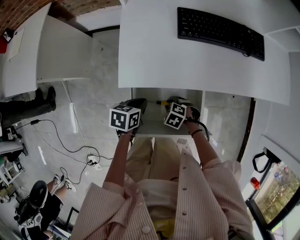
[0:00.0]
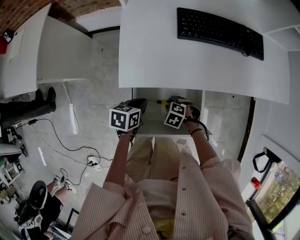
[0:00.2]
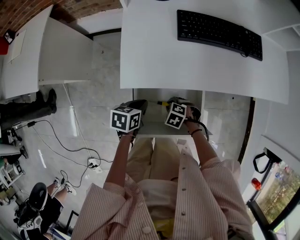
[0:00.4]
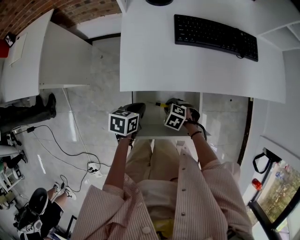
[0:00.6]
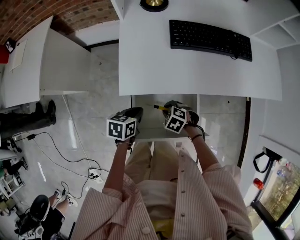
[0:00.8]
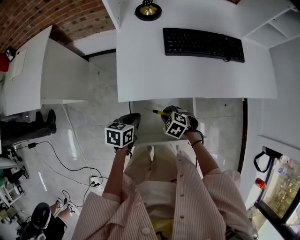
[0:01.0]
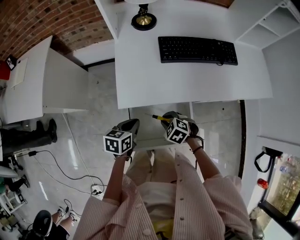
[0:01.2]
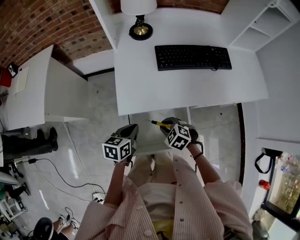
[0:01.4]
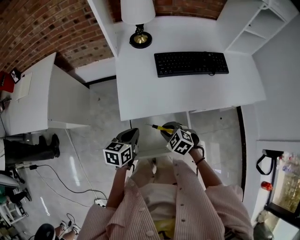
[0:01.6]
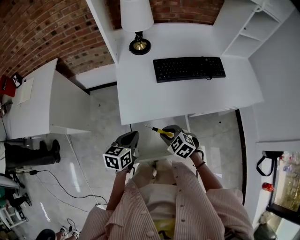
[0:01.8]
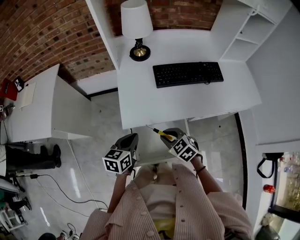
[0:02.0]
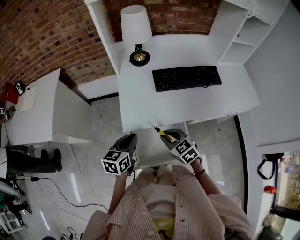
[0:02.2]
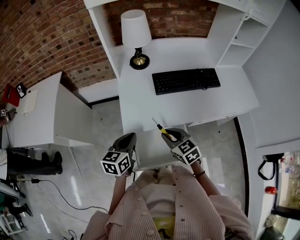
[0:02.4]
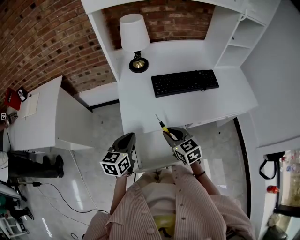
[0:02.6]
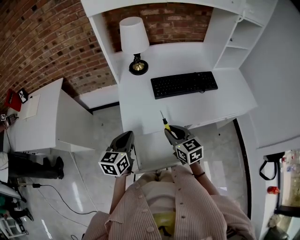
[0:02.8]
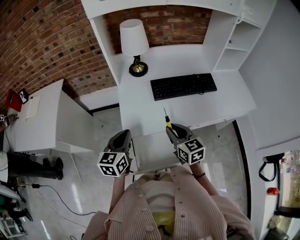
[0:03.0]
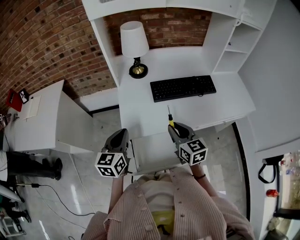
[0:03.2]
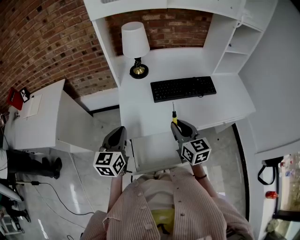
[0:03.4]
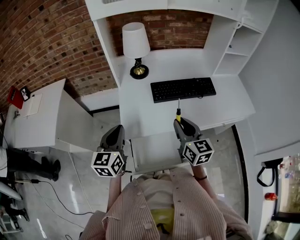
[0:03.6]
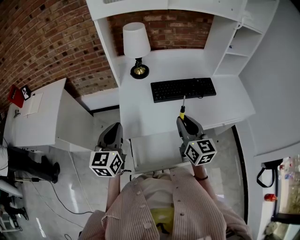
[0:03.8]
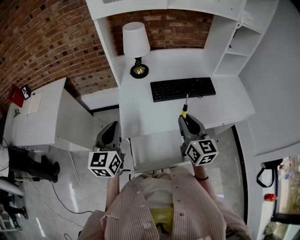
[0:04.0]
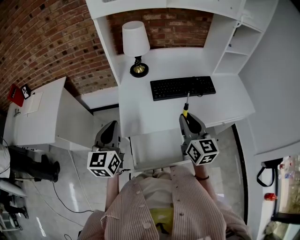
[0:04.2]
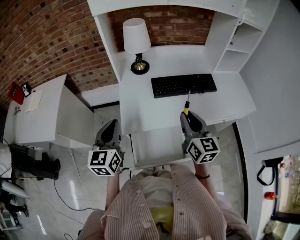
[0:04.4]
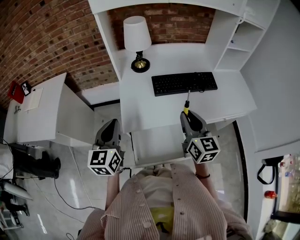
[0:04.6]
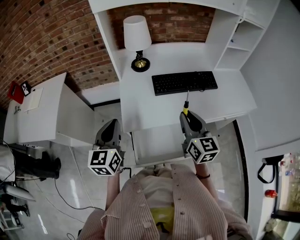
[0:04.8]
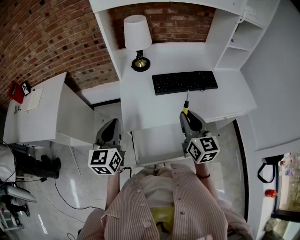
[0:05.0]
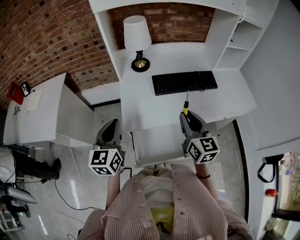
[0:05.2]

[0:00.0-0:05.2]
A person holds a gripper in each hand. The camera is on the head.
0:00.0 to 0:01.8: The two grippers go about 15 cm upward. The left gripper rotates roughly 20 degrees. The right gripper changes its angle by about 30 degrees.
0:01.8 to 0:03.4: The right gripper is displaced upward and to the right by approximately 20 cm, and tips its fingers upward by roughly 40 degrees, while the left gripper is displaced upward by roughly 15 cm, and turns by some 30 degrees.
0:03.4 to 0:05.2: The right gripper goes roughly 5 cm upward.

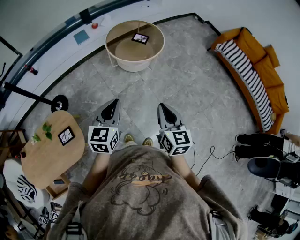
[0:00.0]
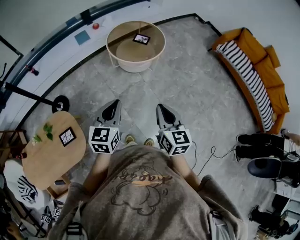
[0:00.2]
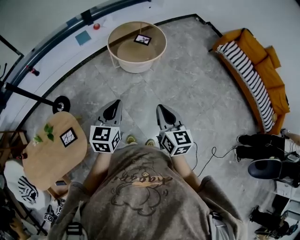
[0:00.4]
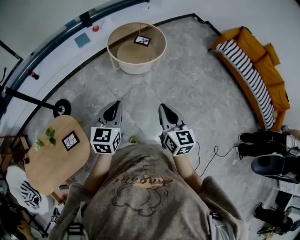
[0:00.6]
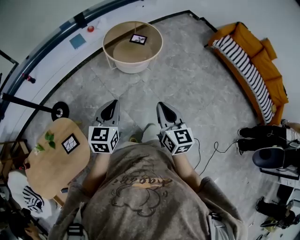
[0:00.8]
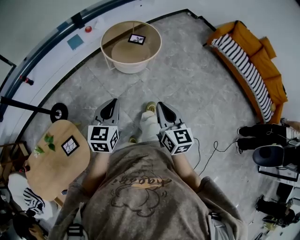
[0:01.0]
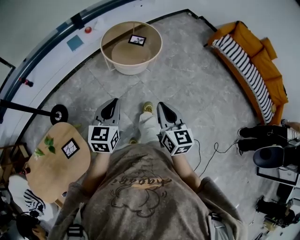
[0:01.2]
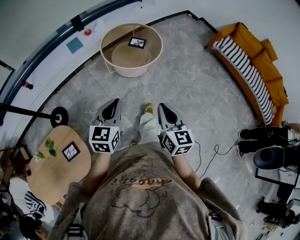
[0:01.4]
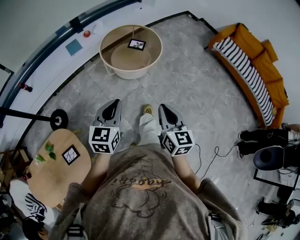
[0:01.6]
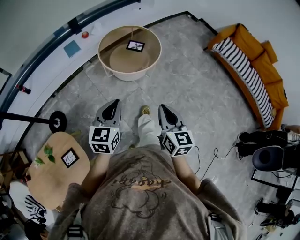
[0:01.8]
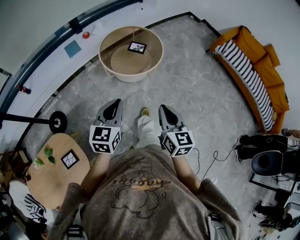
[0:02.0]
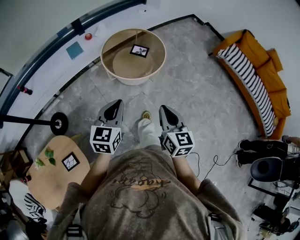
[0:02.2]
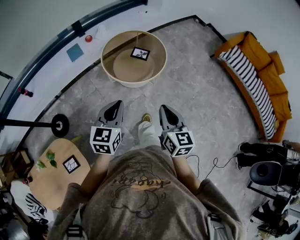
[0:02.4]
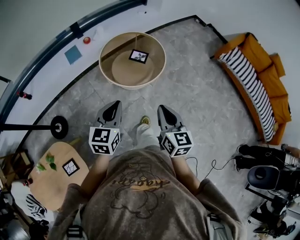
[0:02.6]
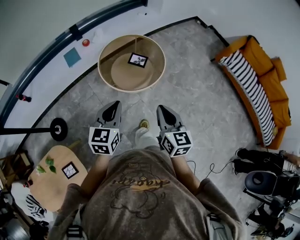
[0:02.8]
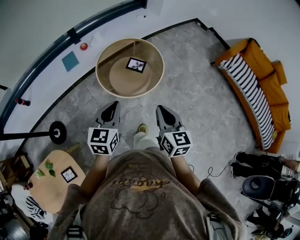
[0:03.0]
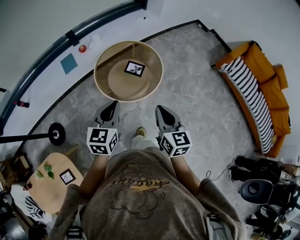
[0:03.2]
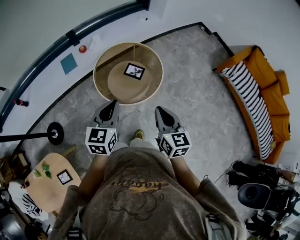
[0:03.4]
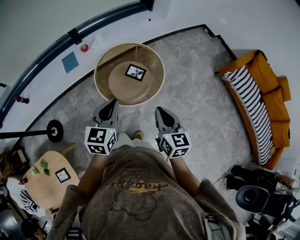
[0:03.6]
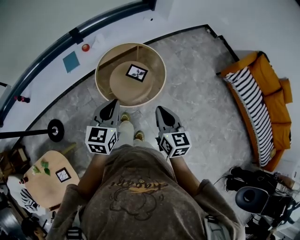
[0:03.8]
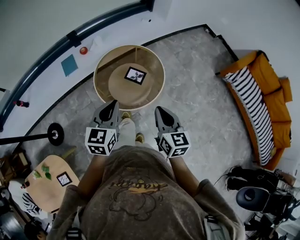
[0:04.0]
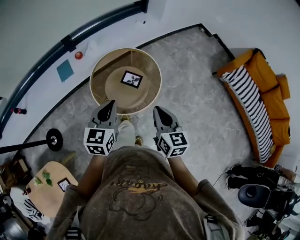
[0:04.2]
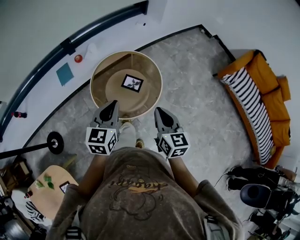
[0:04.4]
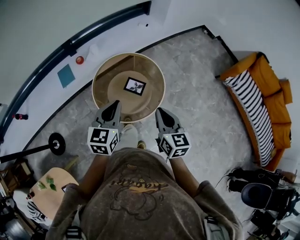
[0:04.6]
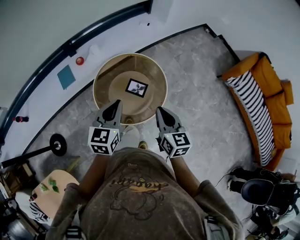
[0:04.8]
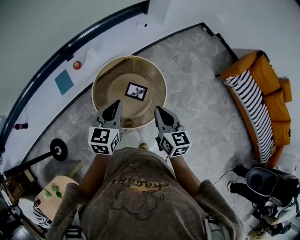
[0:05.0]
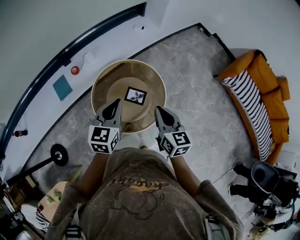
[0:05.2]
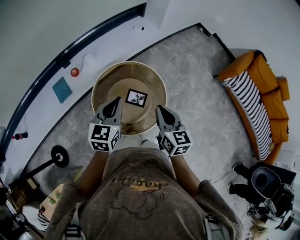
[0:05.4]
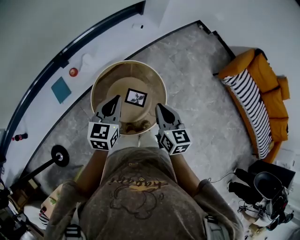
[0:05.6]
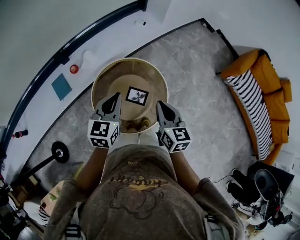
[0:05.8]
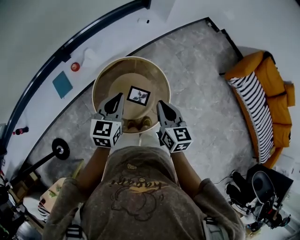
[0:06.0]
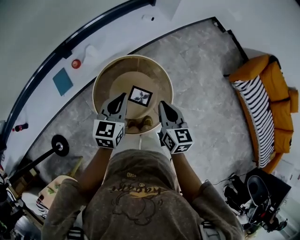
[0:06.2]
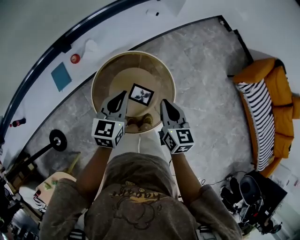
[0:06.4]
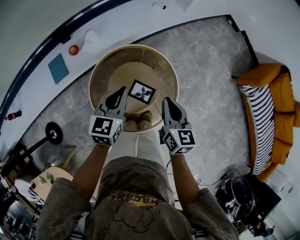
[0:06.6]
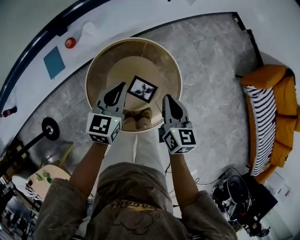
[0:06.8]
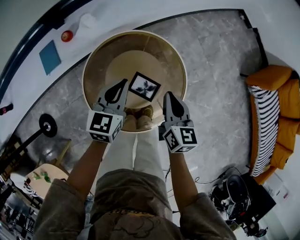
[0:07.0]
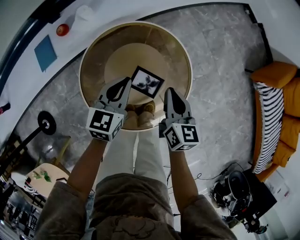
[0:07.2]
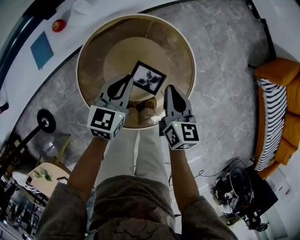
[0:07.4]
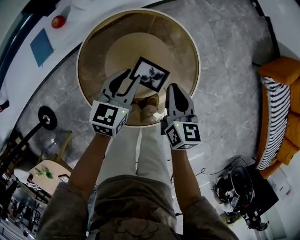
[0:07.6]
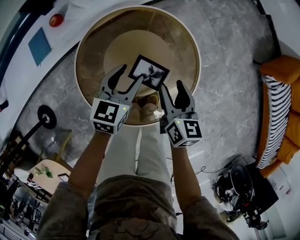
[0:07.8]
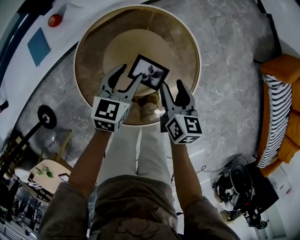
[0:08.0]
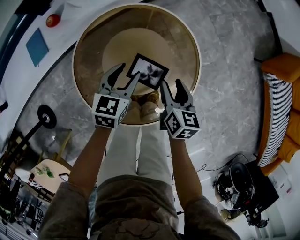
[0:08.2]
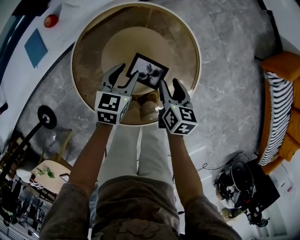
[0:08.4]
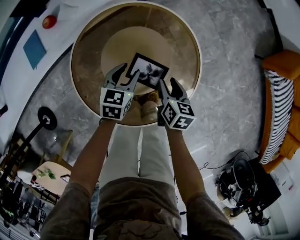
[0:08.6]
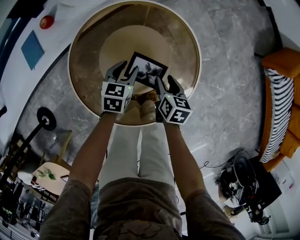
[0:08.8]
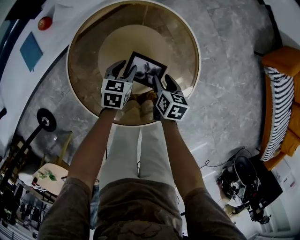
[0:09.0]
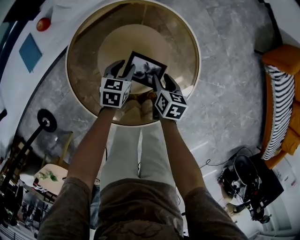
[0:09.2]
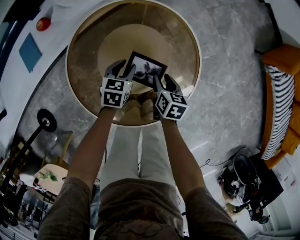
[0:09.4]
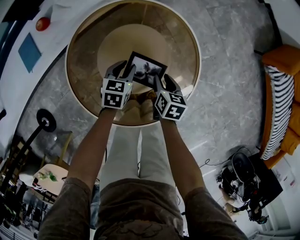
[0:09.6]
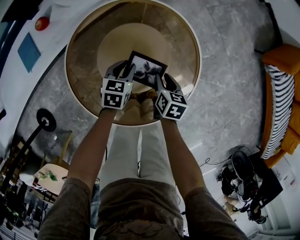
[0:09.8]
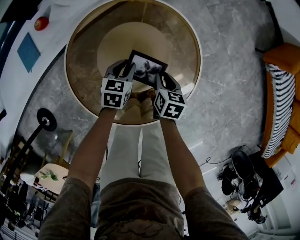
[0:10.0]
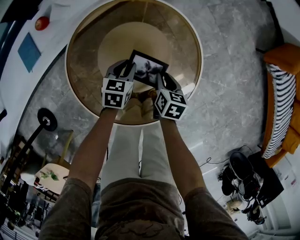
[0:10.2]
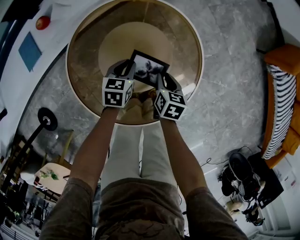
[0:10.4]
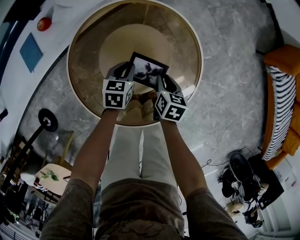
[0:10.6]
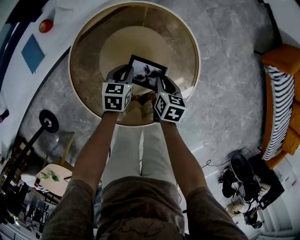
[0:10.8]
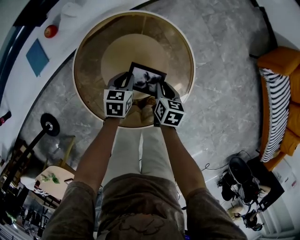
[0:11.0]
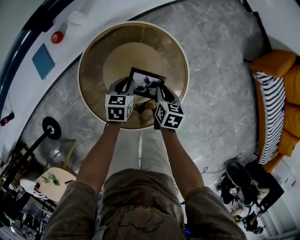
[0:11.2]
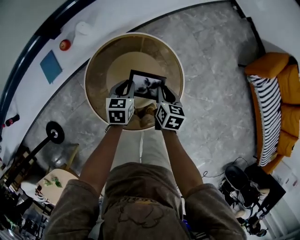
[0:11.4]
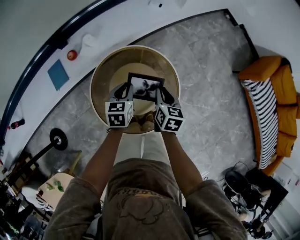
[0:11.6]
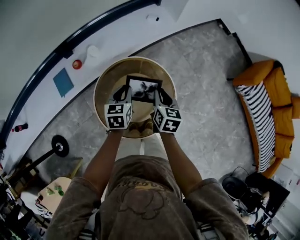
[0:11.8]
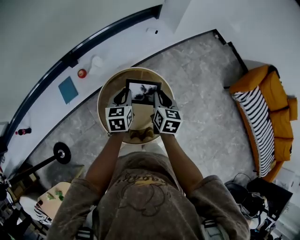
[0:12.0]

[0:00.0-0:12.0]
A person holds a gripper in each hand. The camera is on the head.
0:00.0 to 0:01.6: The two grippers go roughly 10 cm forward.
0:01.6 to 0:03.0: Both grippers travel together forward, about 25 cm.
0:03.0 to 0:04.4: Both grippers move forward, some 15 cm.
0:04.4 to 0:06.0: The grippers both shift forward by about 20 cm.
0:06.0 to 0:07.6: Both grippers move downward, some 25 cm. The left gripper opens its fingers.
0:07.6 to 0:09.0: Both grippers move downward, approximately 15 cm. The right gripper swivels some 20 degrees, and opens.
0:09.0 to 0:10.4: The left gripper closes up; the right gripper closes.
0:10.4 to 0:12.0: The grippers both shift upward by about 40 cm. The right gripper rotates about 20 degrees. The left gripper turns by about 20 degrees.

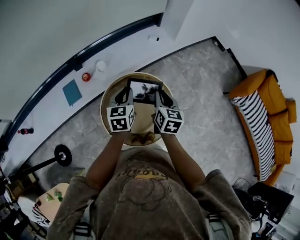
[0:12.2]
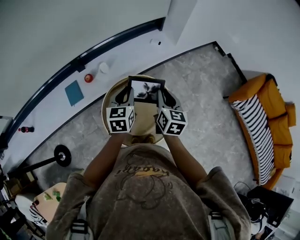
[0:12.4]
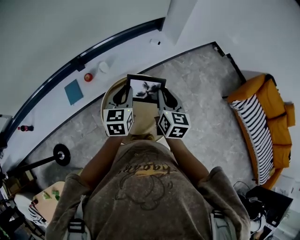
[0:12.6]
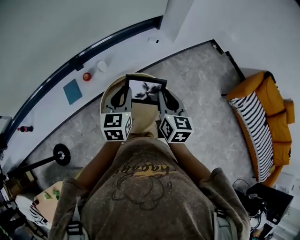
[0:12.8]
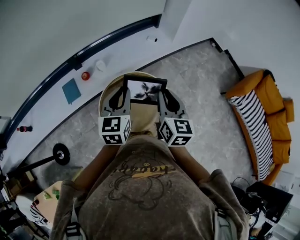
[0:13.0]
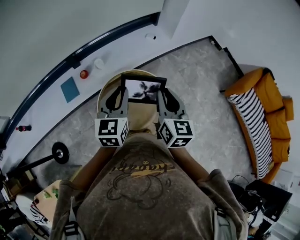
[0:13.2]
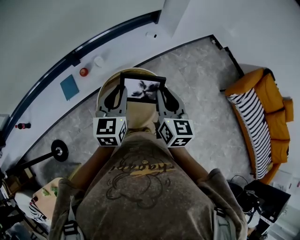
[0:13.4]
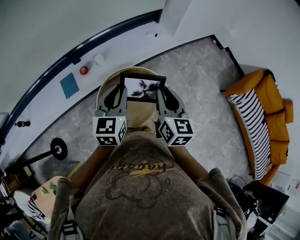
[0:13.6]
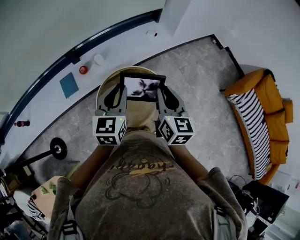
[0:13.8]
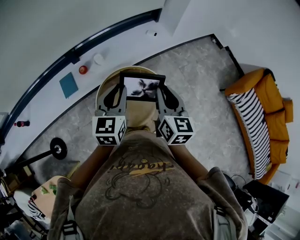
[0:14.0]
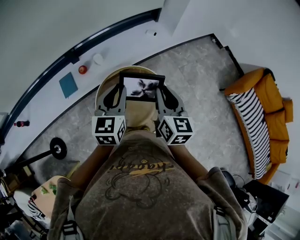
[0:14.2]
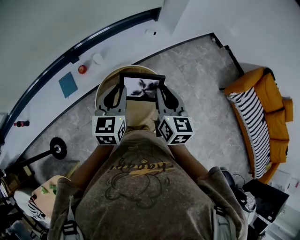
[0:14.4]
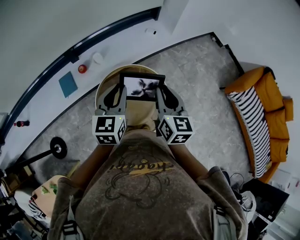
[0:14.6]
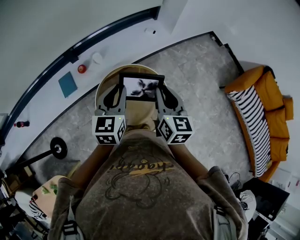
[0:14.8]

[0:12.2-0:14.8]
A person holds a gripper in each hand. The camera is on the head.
0:12.2 to 0:13.4: The two grippers go about 15 cm upward and backward.
0:13.4 to 0:14.8: The grippers move only a little.

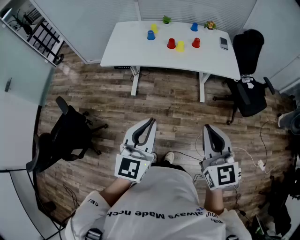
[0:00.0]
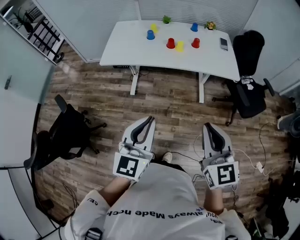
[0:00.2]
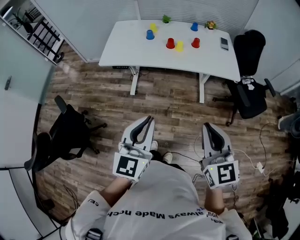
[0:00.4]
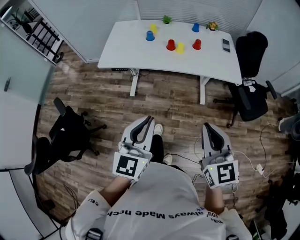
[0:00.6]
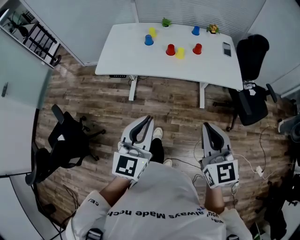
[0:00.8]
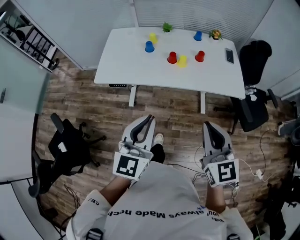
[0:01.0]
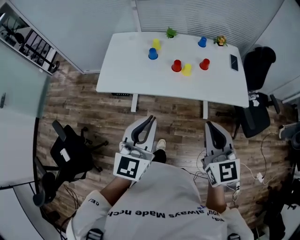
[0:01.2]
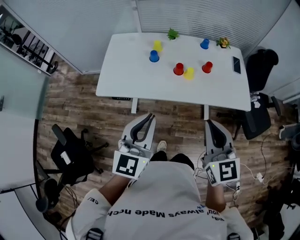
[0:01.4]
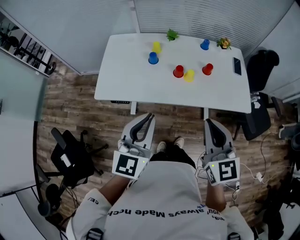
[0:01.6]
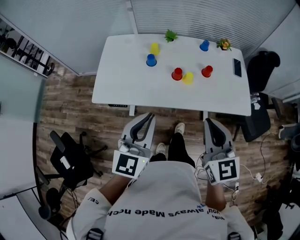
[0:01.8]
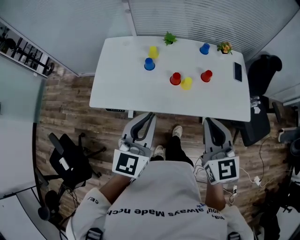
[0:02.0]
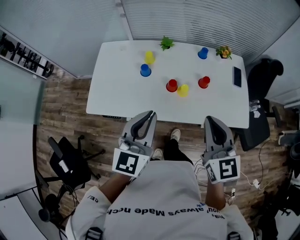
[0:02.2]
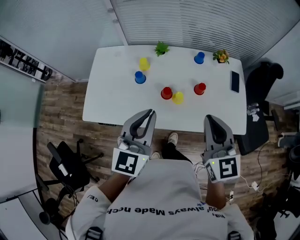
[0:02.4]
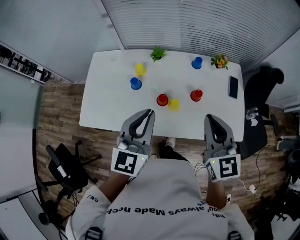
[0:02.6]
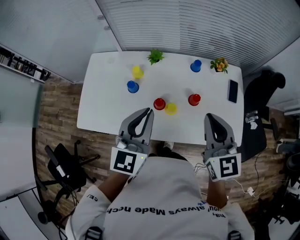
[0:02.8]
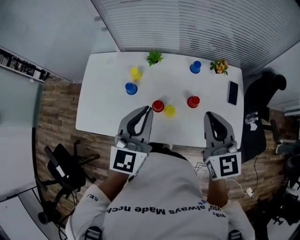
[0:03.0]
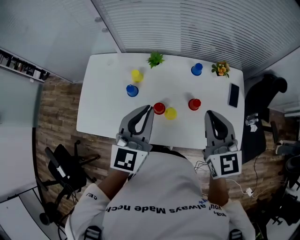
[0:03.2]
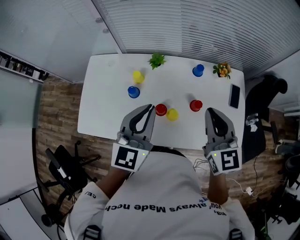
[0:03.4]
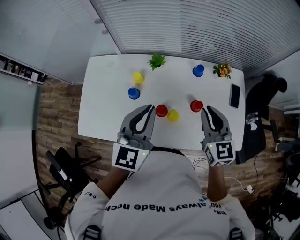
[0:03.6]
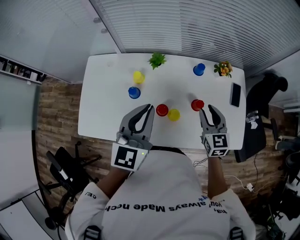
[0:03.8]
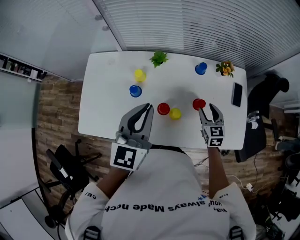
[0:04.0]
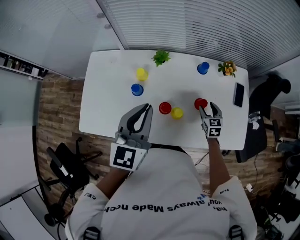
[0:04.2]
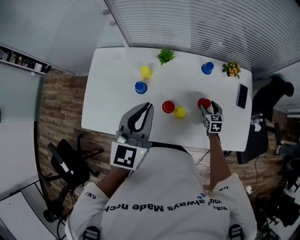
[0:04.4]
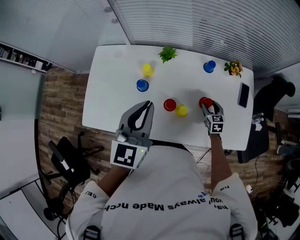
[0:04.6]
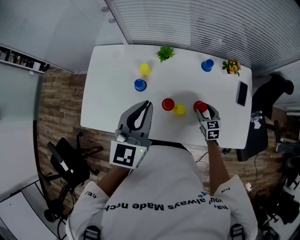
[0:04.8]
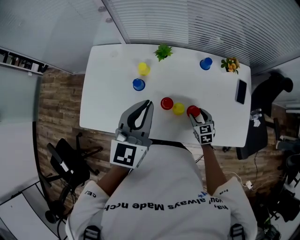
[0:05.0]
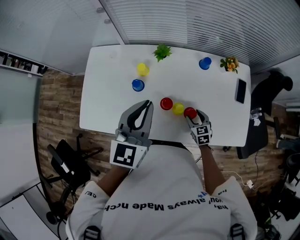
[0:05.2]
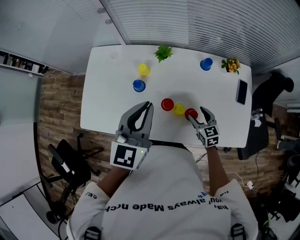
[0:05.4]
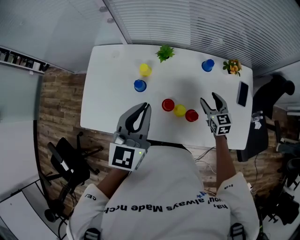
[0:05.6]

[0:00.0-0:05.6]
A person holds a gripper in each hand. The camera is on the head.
0:00.0 to 0:01.4: Both grippers move forward, about 30 cm.
0:01.4 to 0:02.8: Both grippers move forward, approximately 30 cm.
0:02.8 to 0:04.2: The right gripper goes about 35 cm downward and forward, turns by approximately 30 degrees, and opens. Meanwhile the left gripper goes roughly 5 cm forward.
0:04.2 to 0:05.6: The right gripper heads upward, covering about 5 cm.
